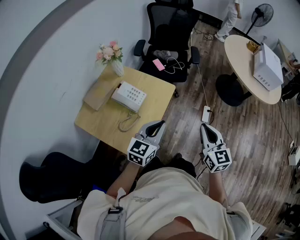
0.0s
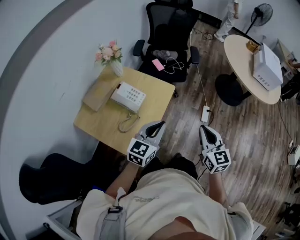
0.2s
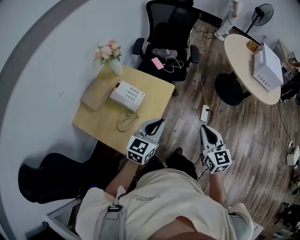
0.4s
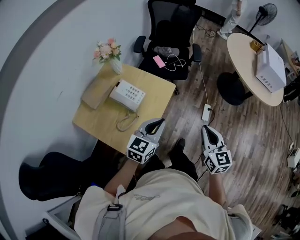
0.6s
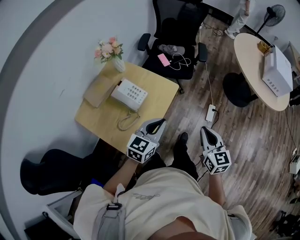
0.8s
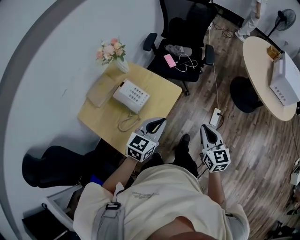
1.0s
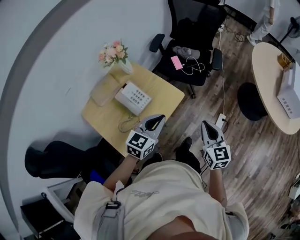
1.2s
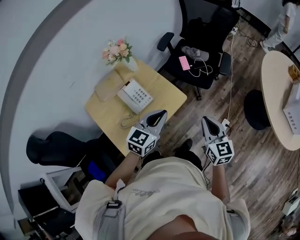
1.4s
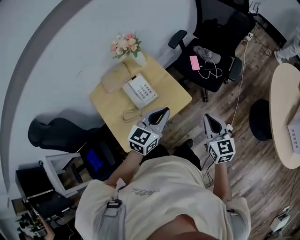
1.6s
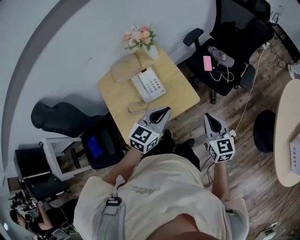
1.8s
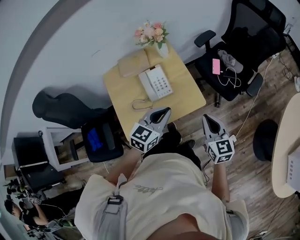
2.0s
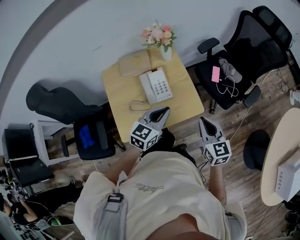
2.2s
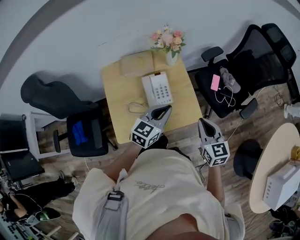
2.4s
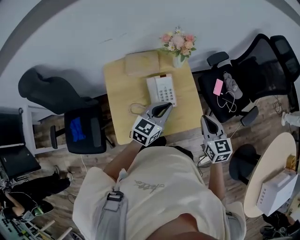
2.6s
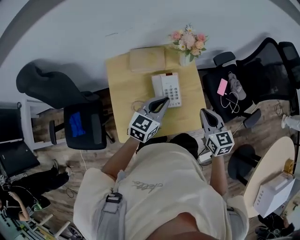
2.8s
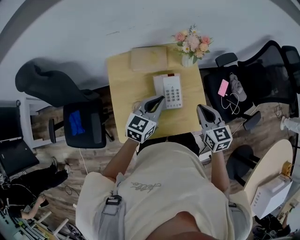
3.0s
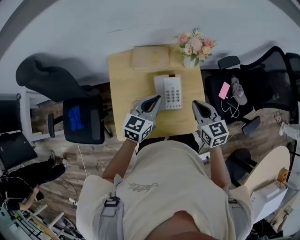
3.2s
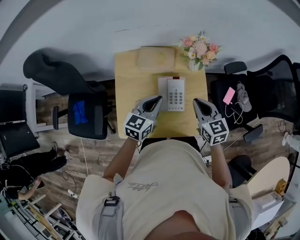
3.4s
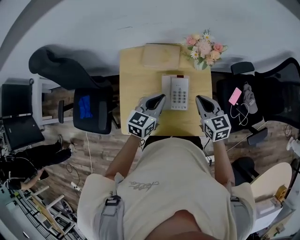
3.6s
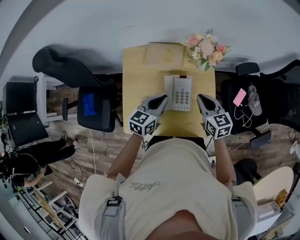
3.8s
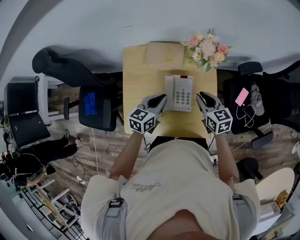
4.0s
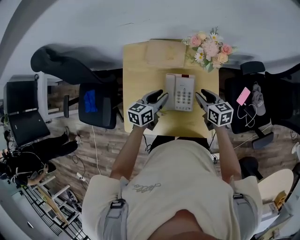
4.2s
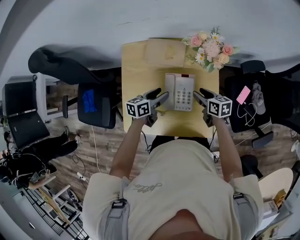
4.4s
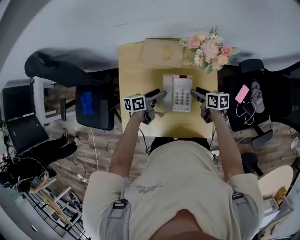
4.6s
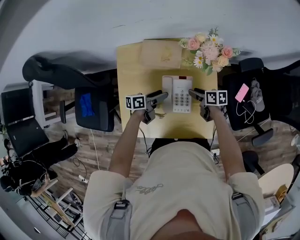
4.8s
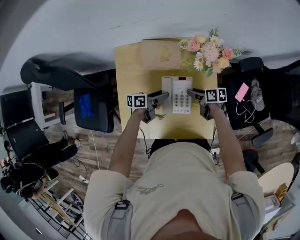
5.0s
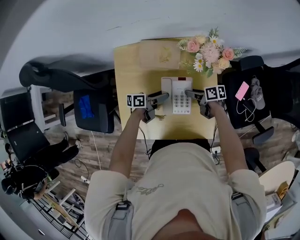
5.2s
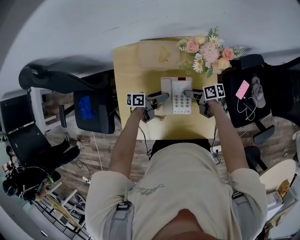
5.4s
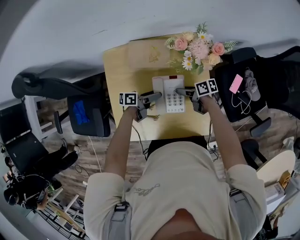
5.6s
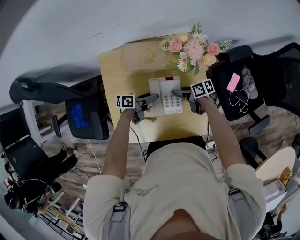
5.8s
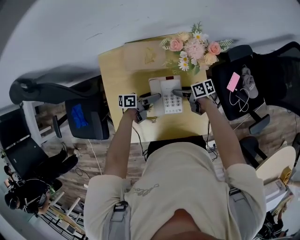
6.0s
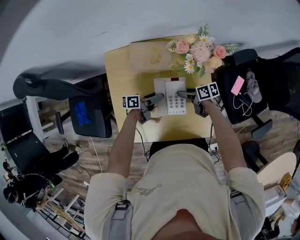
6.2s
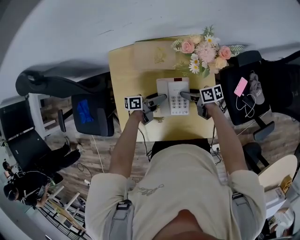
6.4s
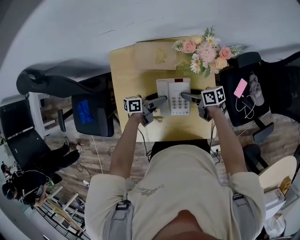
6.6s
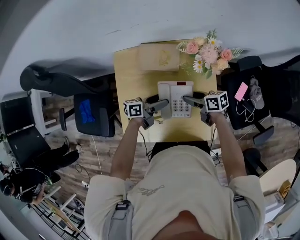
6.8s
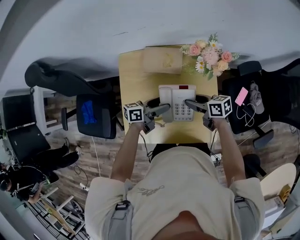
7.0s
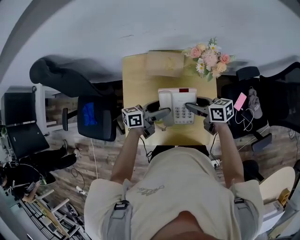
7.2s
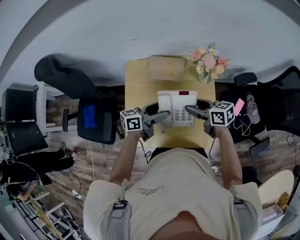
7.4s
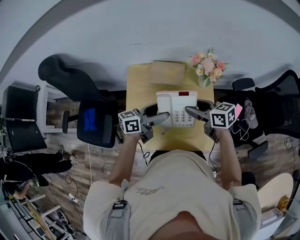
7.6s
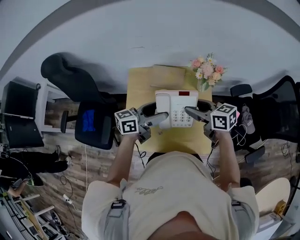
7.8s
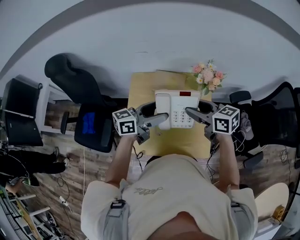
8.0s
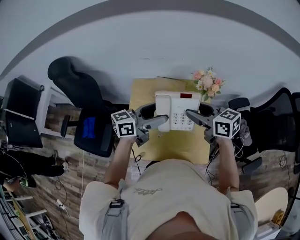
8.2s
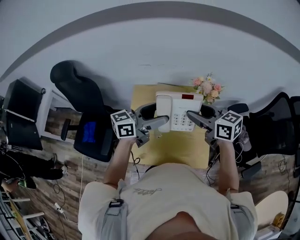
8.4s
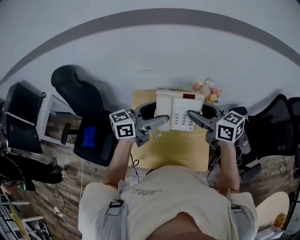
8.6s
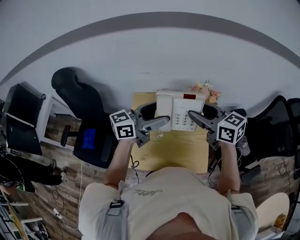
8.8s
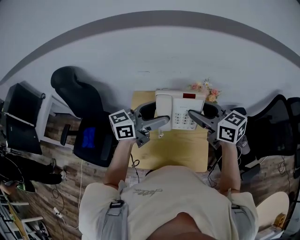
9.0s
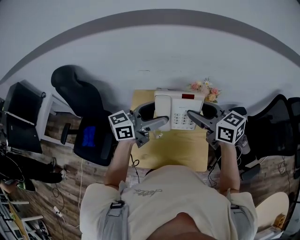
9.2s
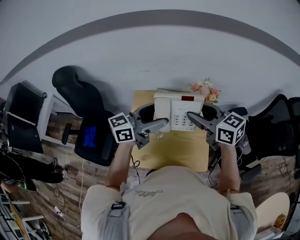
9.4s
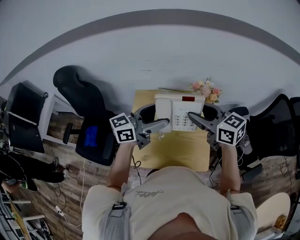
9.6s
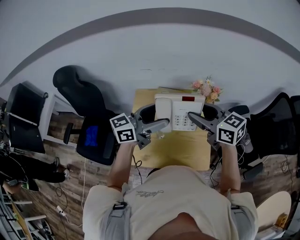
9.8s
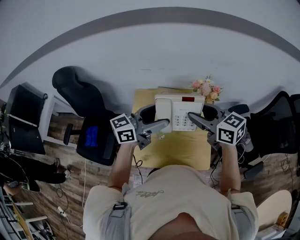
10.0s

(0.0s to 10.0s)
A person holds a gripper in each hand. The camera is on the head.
0.0s - 1.4s: The grippers both shift forward by some 20 cm. The left gripper turns by roughly 20 degrees. Meanwhile the right gripper changes its angle by about 20 degrees.
1.4s - 2.8s: The left gripper changes place by some 25 cm, and turns by some 30 degrees; the right gripper changes place by some 30 cm, and changes its angle by roughly 40 degrees.
2.8s - 4.2s: The left gripper moves downward, forward and to the left, approximately 15 cm, and turns by about 30 degrees; the right gripper is displaced forward and downward by about 20 cm, rotates about 30 degrees, and opens.
4.2s - 5.8s: The grippers both shift downward by about 15 cm. The right gripper swivels about 40 degrees, and opens. The left gripper turns by some 50 degrees, and opens up.
5.8s - 7.2s: The grippers both shift upward by some 15 cm. The left gripper rotates roughly 30 degrees. The right gripper turns by about 20 degrees.
7.2s - 8.6s: Both grippers travel together upward, some 25 cm. The left gripper turns by approximately 30 degrees. The right gripper turns by approximately 30 degrees.
8.6s - 10.0s: The grippers move only a little.

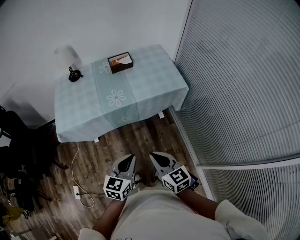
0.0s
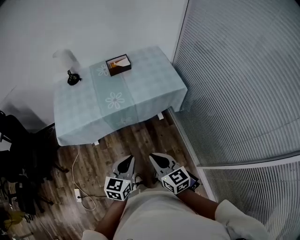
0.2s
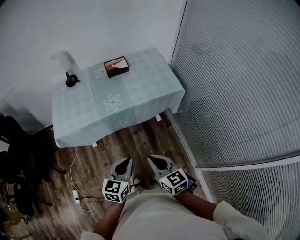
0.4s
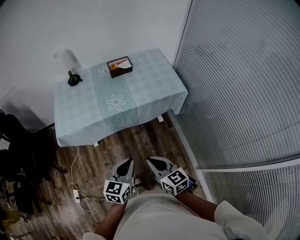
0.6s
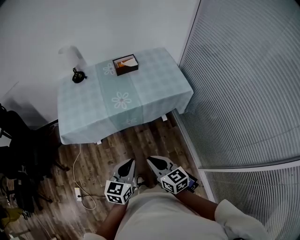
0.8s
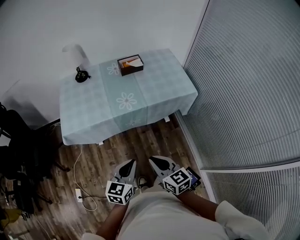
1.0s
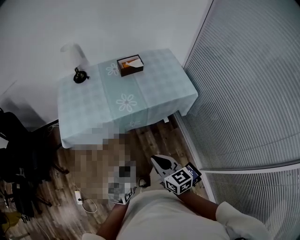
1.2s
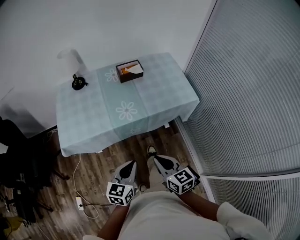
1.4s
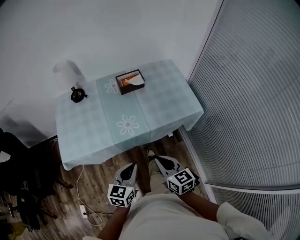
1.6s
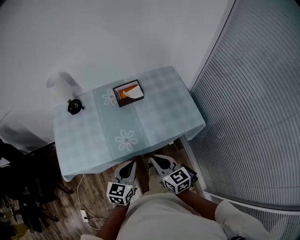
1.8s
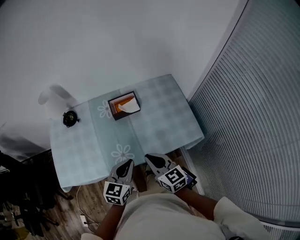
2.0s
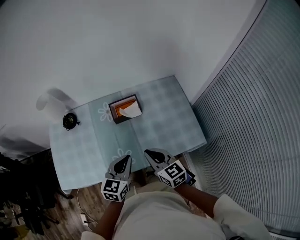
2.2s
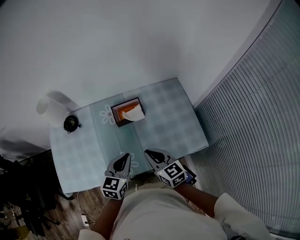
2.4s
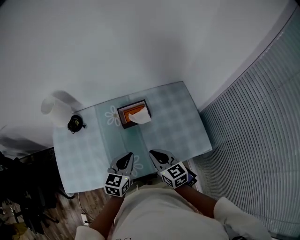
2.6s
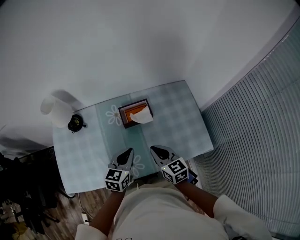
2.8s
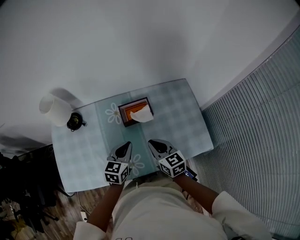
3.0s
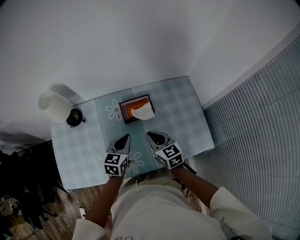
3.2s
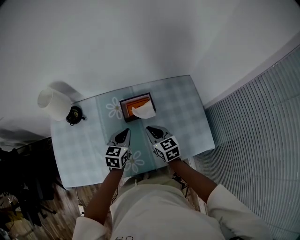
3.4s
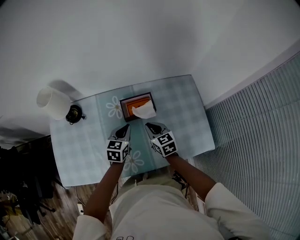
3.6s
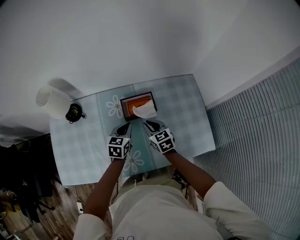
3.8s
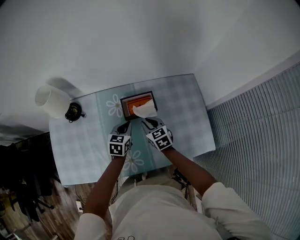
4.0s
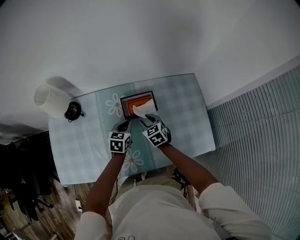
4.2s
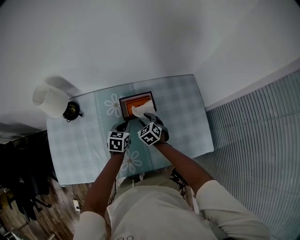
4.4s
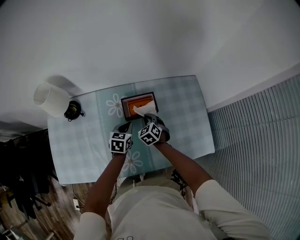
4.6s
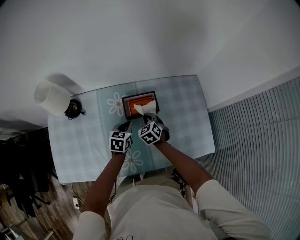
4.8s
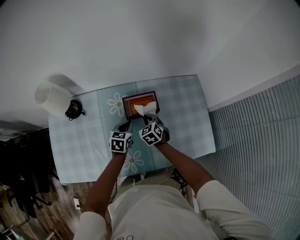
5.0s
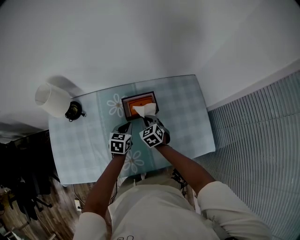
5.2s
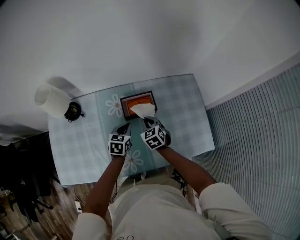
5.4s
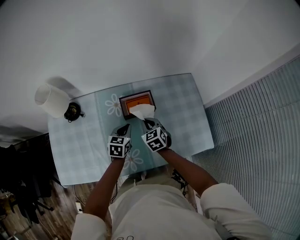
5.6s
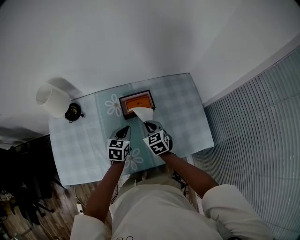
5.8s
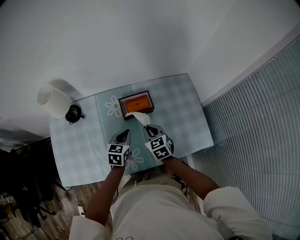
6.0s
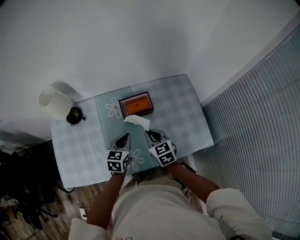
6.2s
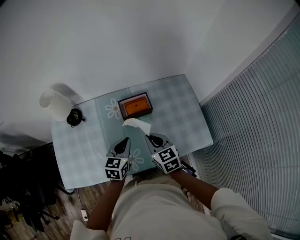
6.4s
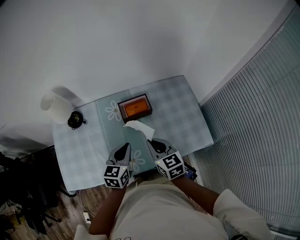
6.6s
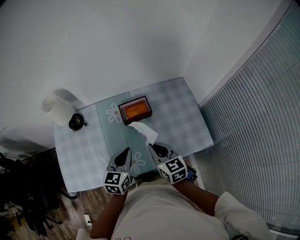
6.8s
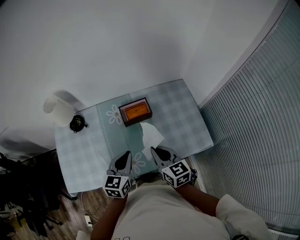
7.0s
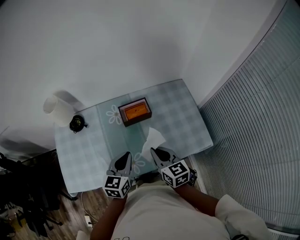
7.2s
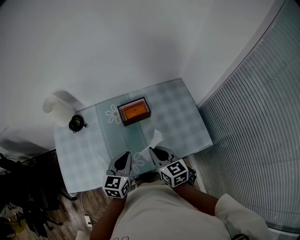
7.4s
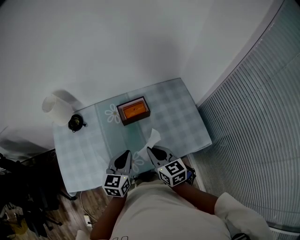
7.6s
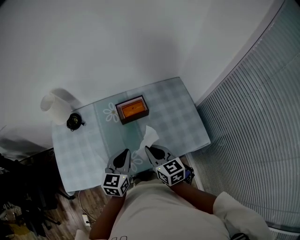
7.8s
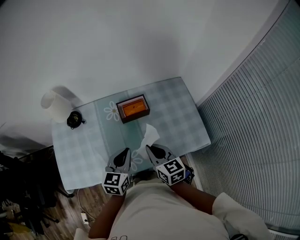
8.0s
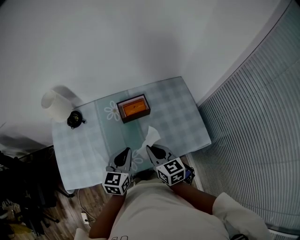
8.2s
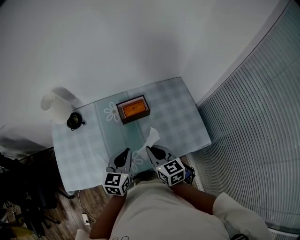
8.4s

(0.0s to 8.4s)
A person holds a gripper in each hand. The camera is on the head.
0.0s - 1.4s: The right gripper goes some 10 cm forward and to the left. Meanwhile the left gripper moves to the left and forward, approximately 10 cm.
1.4s - 2.8s: The two grippers travel together, forward, about 50 cm.
2.8s - 4.2s: The two grippers go approximately 20 cm forward and downward. The right gripper turns by approximately 30 degrees, and opens.
4.2s - 5.6s: The right gripper closes.
5.6s - 7.0s: The grippers both shift upward and backward by about 20 cm. The right gripper turns by some 30 degrees.
7.0s - 8.4s: There are only small adjustments of the grippers.

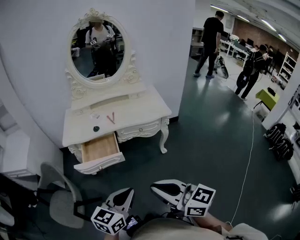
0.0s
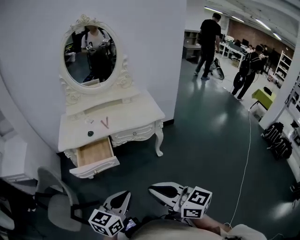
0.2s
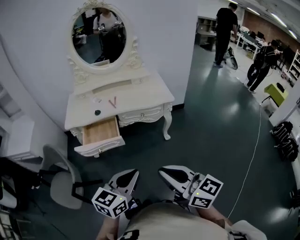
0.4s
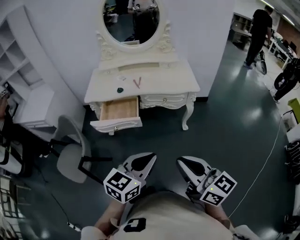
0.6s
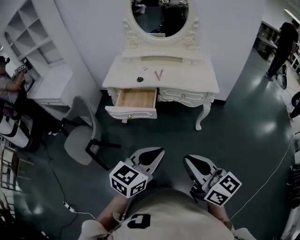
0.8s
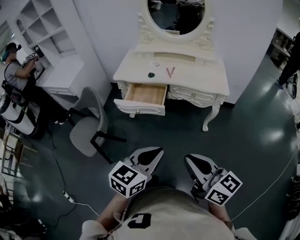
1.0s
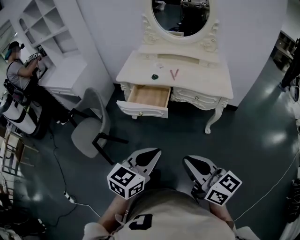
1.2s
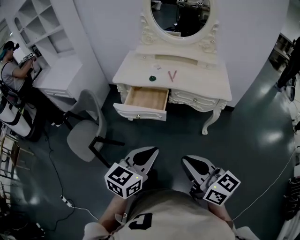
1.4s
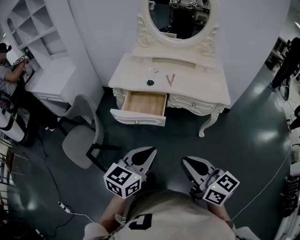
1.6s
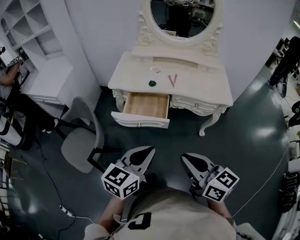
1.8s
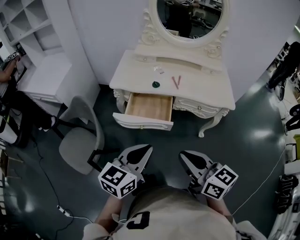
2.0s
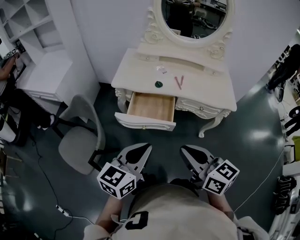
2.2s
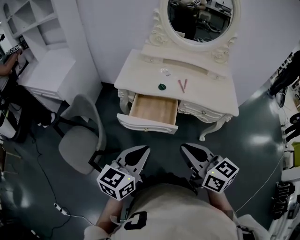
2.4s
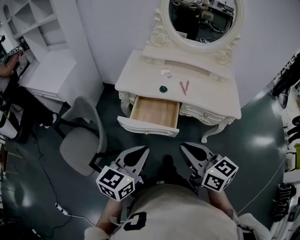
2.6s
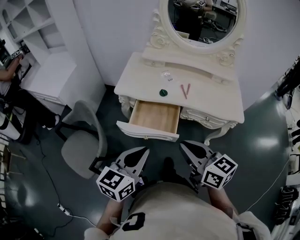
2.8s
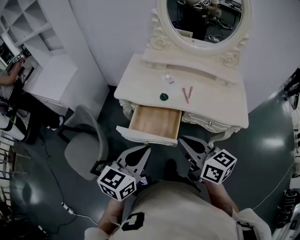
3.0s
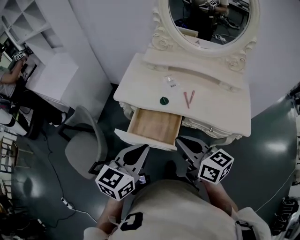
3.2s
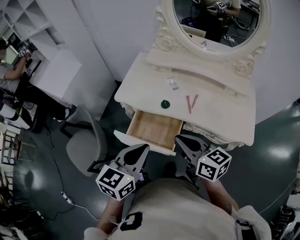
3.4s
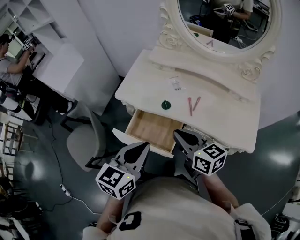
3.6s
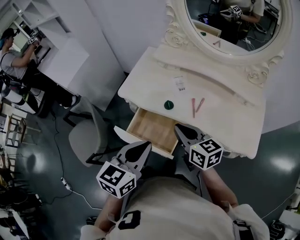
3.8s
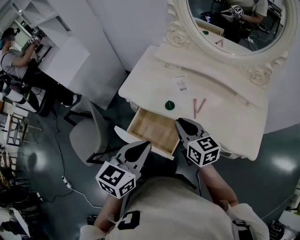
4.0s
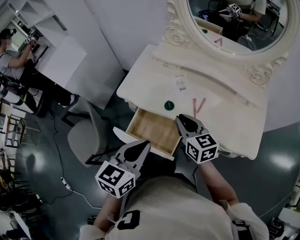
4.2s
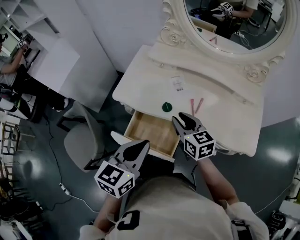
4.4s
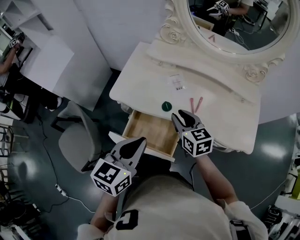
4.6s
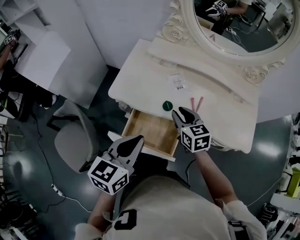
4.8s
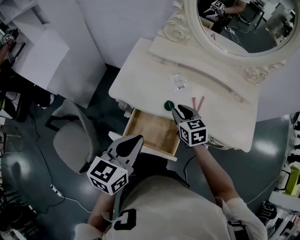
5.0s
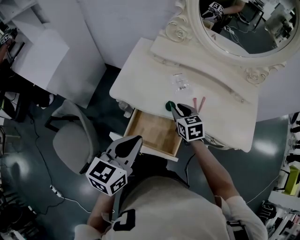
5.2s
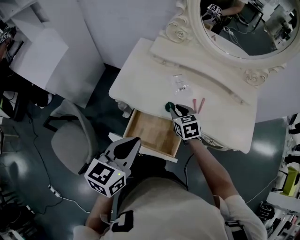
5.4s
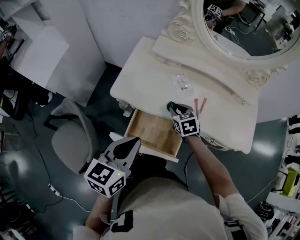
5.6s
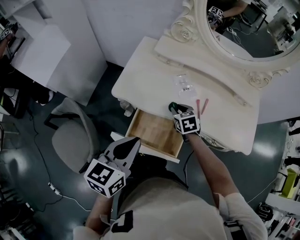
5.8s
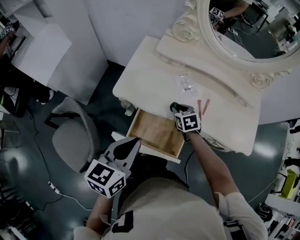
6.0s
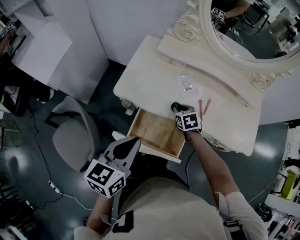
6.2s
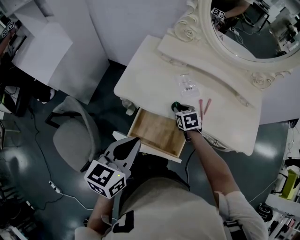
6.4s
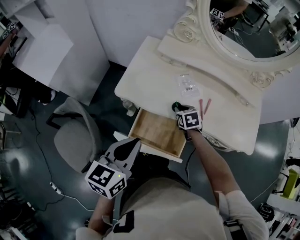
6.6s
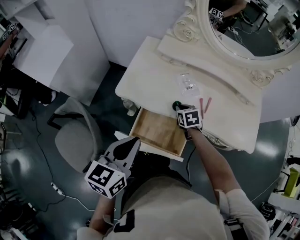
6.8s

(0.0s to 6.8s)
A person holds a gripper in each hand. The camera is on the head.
0.0s - 1.4s: The right gripper moves about 10 cm to the right and comes back; the left gripper travels to the right and back again, about 10 cm each way.
1.4s - 2.8s: Both grippers move forward and to the left, some 25 cm.
2.8s - 4.0s: The right gripper goes roughly 25 cm forward. Meanwhile the left gripper shifts roughly 20 cm forward and to the right.
4.0s - 5.4s: The right gripper moves downward, forward and to the left, some 20 cm, and turns by roughly 30 degrees; the left gripper travels to the left and forward by approximately 15 cm.
5.4s - 6.8s: The right gripper goes roughly 5 cm downward.
